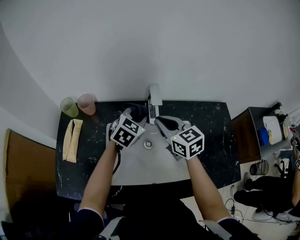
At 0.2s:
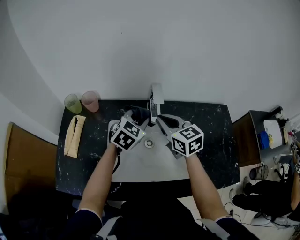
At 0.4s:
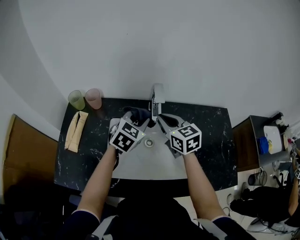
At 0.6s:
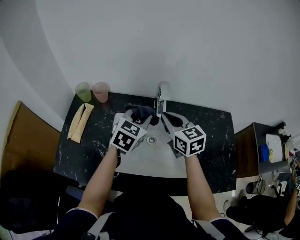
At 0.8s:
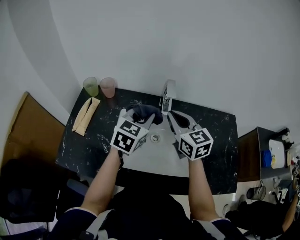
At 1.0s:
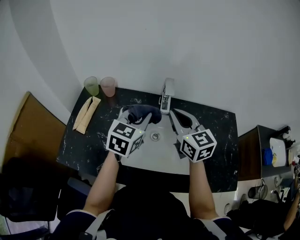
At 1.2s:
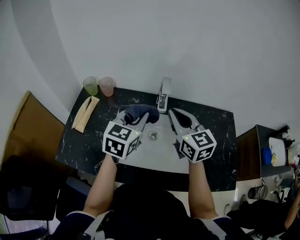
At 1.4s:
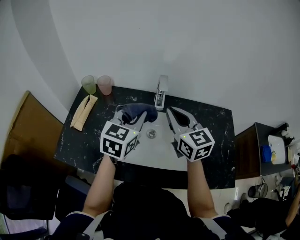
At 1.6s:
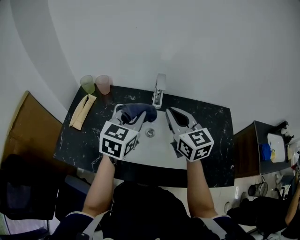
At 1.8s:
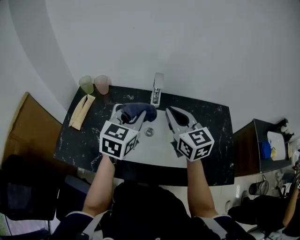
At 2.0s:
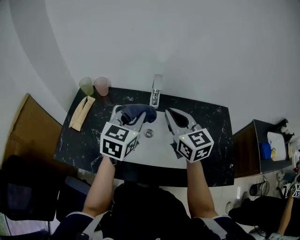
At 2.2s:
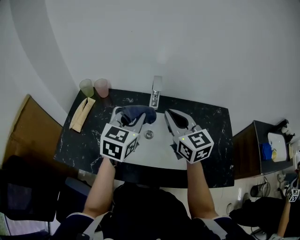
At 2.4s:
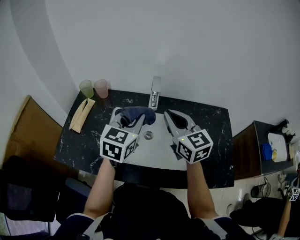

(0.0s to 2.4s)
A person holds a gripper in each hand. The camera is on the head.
0.0s - 1.2s: The left gripper moves backward and upward, some 15 cm, and rotates roughly 30 degrees; the right gripper moves upward and backward, some 10 cm.
1.2s - 2.4s: There are only small adjustments of the grippers.

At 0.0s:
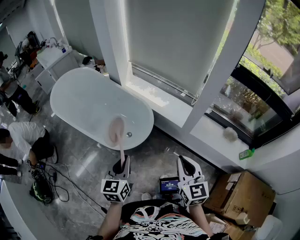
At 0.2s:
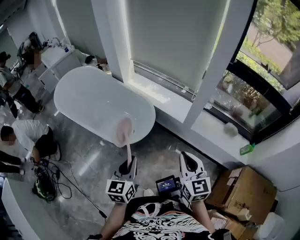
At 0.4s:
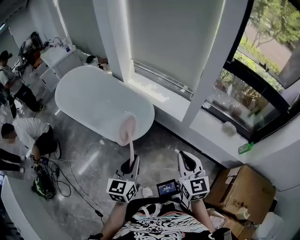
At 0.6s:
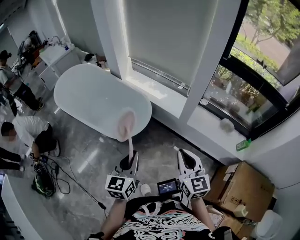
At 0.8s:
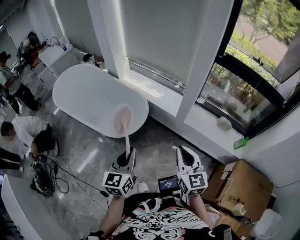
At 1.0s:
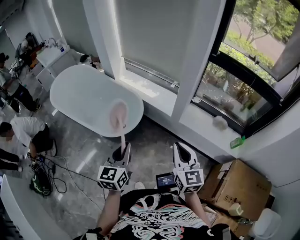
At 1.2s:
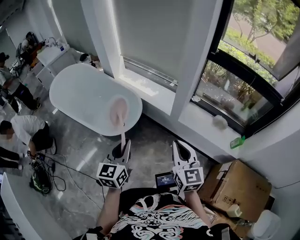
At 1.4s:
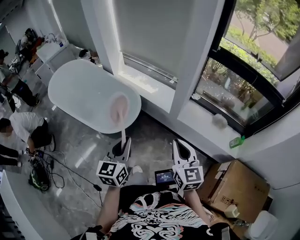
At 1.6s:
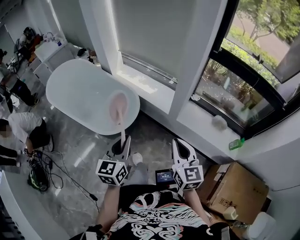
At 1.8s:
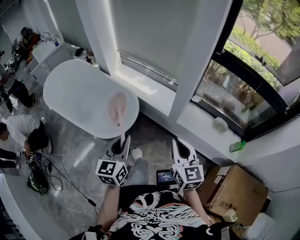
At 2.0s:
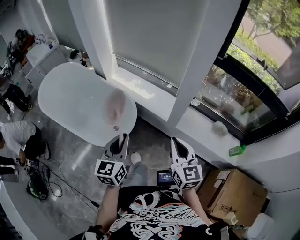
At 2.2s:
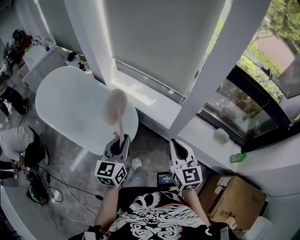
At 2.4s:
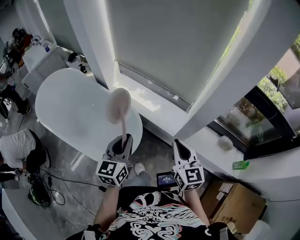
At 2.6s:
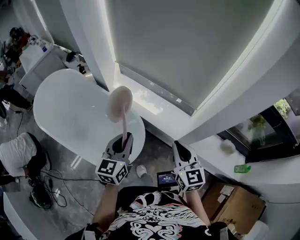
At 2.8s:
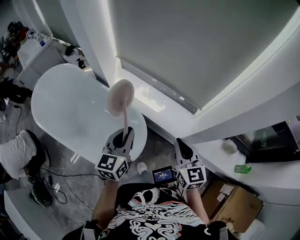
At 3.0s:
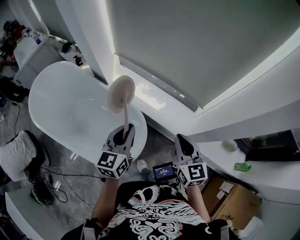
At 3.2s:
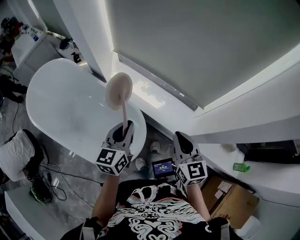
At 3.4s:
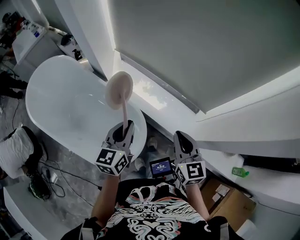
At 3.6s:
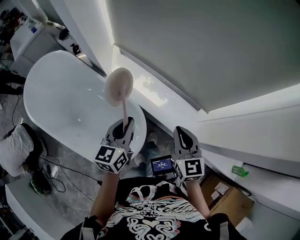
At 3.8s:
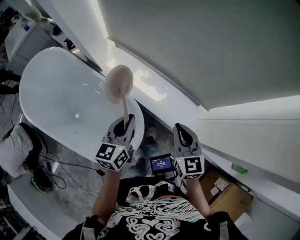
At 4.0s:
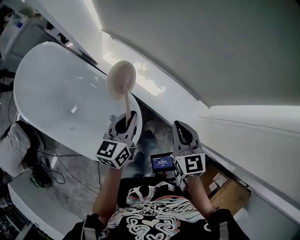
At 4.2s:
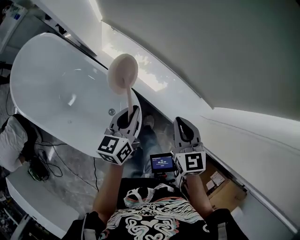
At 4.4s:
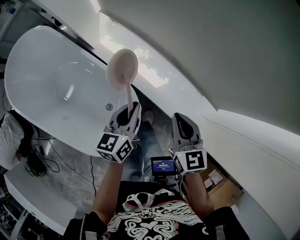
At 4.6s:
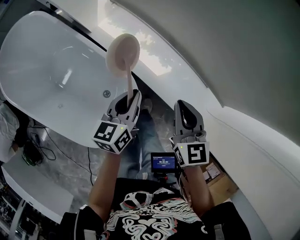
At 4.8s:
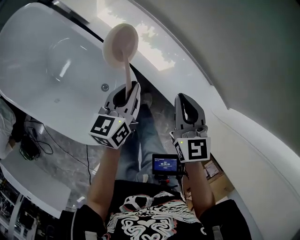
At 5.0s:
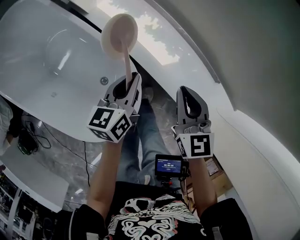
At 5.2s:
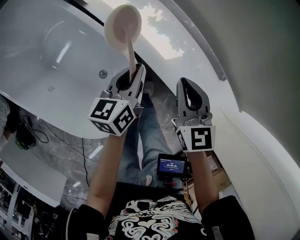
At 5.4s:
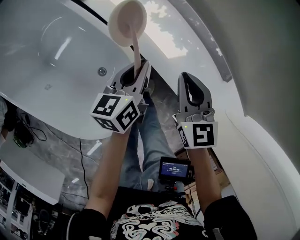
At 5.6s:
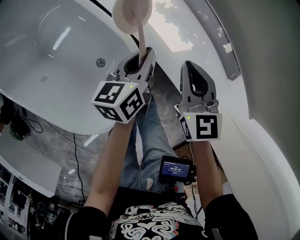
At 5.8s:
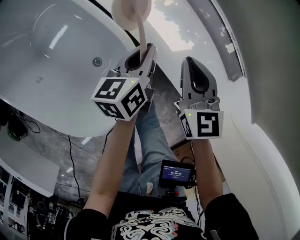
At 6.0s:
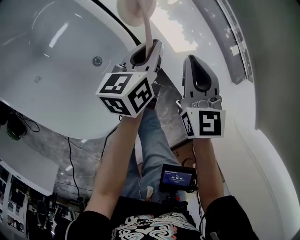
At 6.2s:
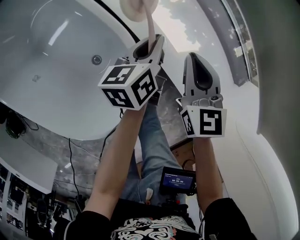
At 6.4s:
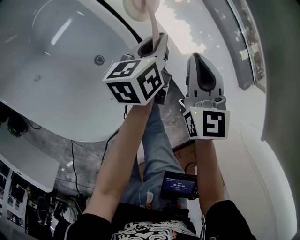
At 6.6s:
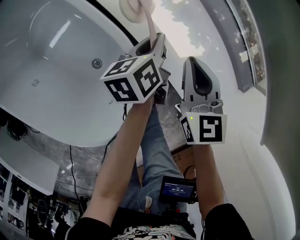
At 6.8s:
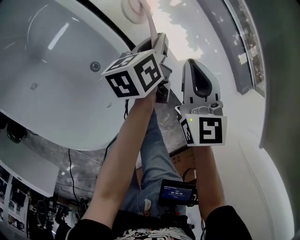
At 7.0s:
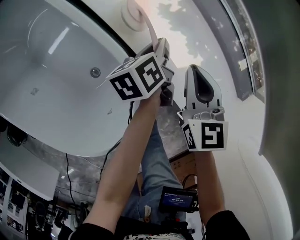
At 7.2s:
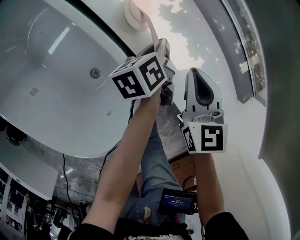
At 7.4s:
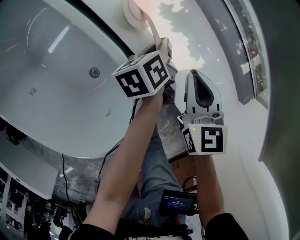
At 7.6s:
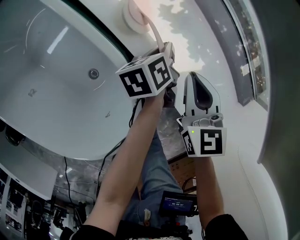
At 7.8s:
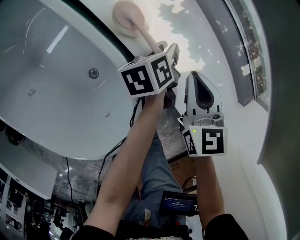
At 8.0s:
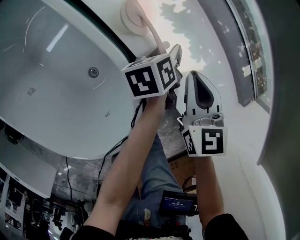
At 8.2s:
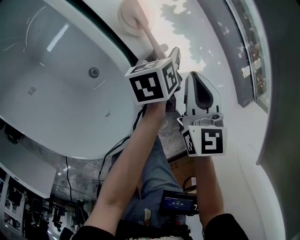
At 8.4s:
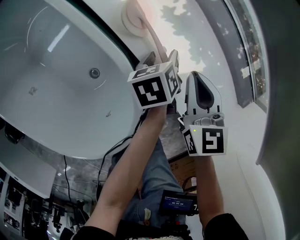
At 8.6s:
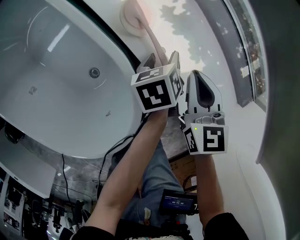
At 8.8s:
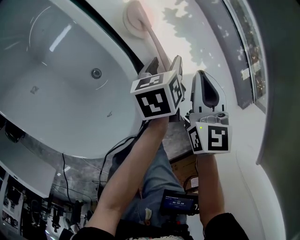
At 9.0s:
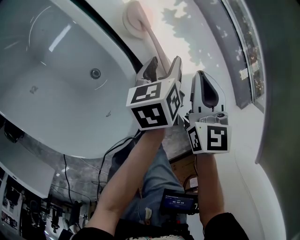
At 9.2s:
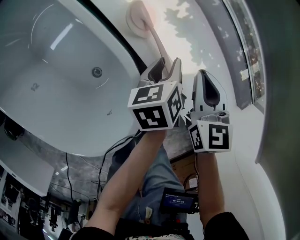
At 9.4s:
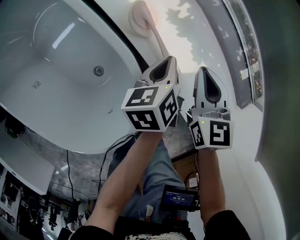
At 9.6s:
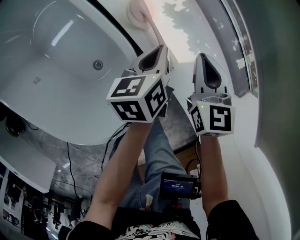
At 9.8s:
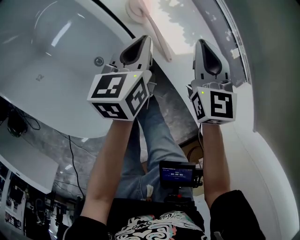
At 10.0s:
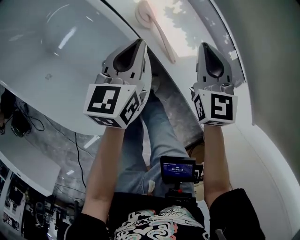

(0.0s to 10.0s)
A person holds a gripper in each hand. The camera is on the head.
0.0s - 1.4s: The left gripper goes roughly 15 cm to the right. The right gripper travels to the right and backward by roughly 15 cm.
1.4s - 2.8s: Both grippers are carried forward, some 50 cm.
2.8s - 4.2s: The two grippers go roughly 25 cm forward and downward.
4.2s - 5.8s: The right gripper is displaced downward and forward by approximately 30 cm. Meanwhile the left gripper moves downward, about 30 cm, and turns by some 20 degrees.
5.8s - 7.2s: The left gripper moves downward and forward, approximately 15 cm, and swivels some 20 degrees, while the right gripper is displaced downward by approximately 10 cm.
7.2s - 8.6s: The left gripper opens.
8.6s - 10.0s: The right gripper is displaced upward by approximately 15 cm. The left gripper is displaced upward and to the left by roughly 25 cm, turns by some 40 degrees, and closes up.

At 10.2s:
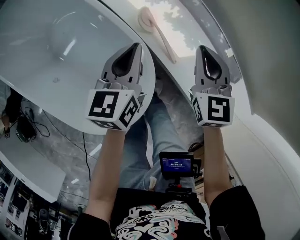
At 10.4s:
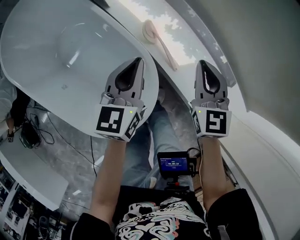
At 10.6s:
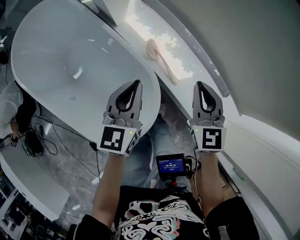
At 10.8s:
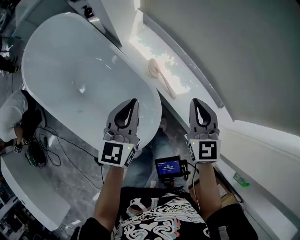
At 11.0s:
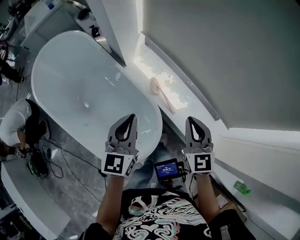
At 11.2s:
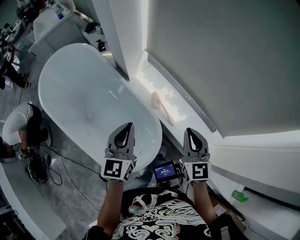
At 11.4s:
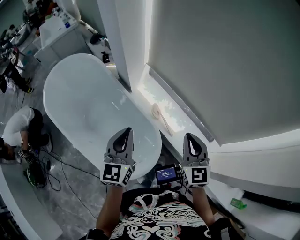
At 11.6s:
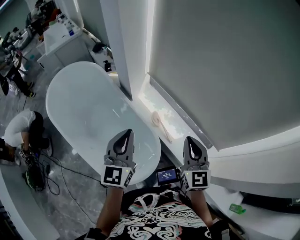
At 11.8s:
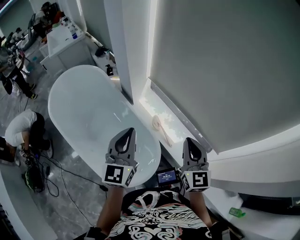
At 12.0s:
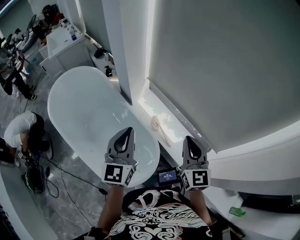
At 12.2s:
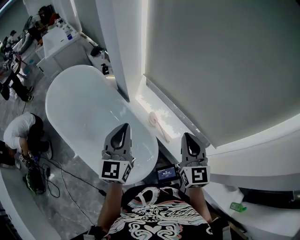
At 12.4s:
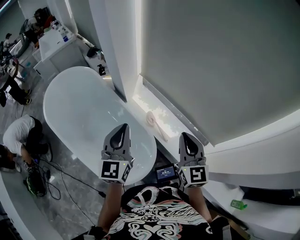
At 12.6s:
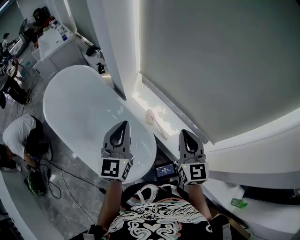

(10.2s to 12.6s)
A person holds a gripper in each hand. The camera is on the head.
10.2s - 11.4s: The left gripper heads upward, covering roughly 35 cm, and swivels some 20 degrees, while the right gripper moves upward and backward, roughly 35 cm.
11.4s - 12.6s: Both grippers travel together upward, approximately 5 cm.

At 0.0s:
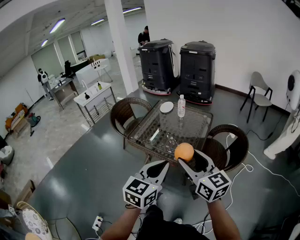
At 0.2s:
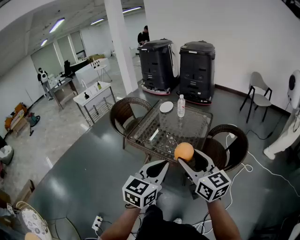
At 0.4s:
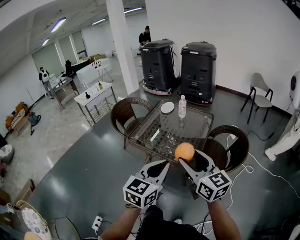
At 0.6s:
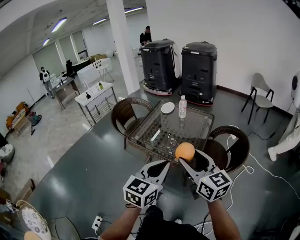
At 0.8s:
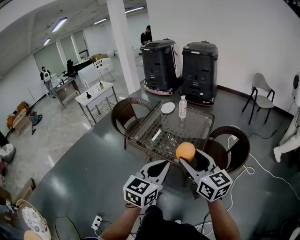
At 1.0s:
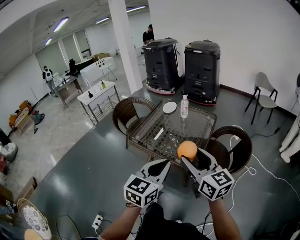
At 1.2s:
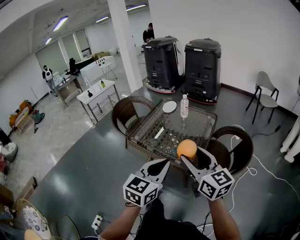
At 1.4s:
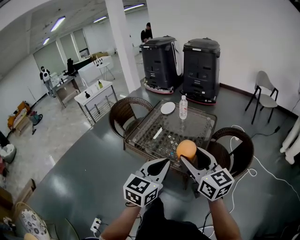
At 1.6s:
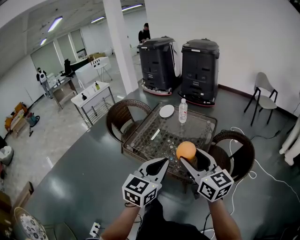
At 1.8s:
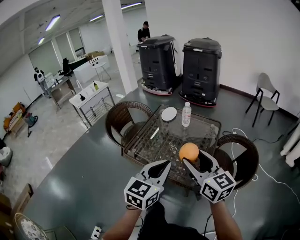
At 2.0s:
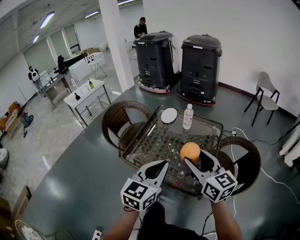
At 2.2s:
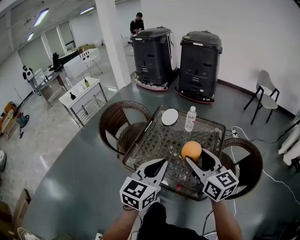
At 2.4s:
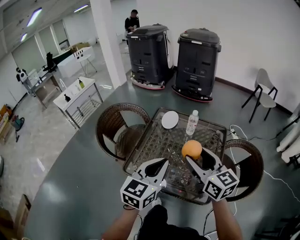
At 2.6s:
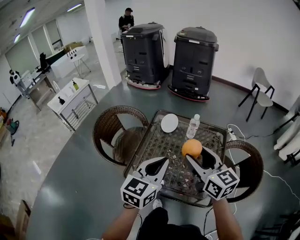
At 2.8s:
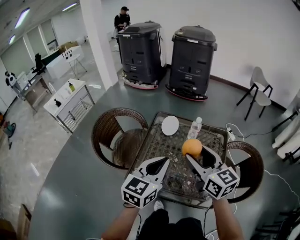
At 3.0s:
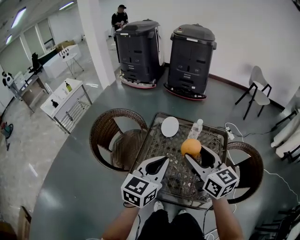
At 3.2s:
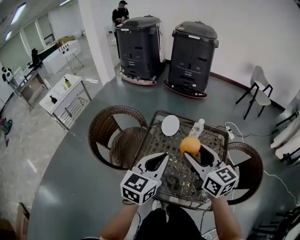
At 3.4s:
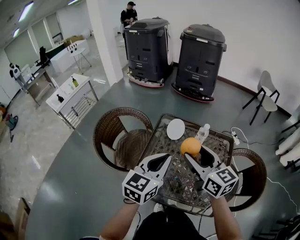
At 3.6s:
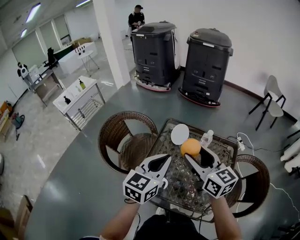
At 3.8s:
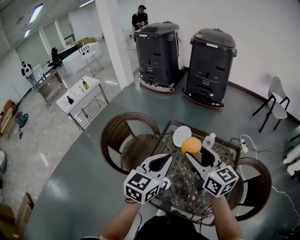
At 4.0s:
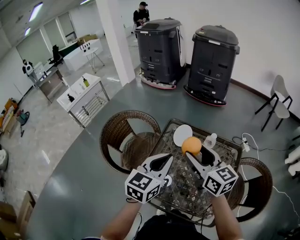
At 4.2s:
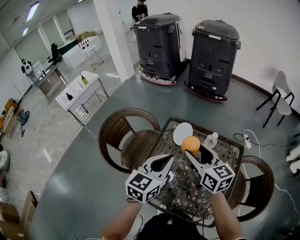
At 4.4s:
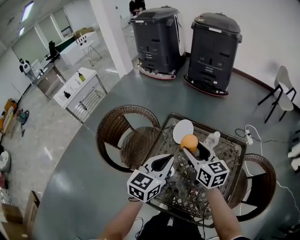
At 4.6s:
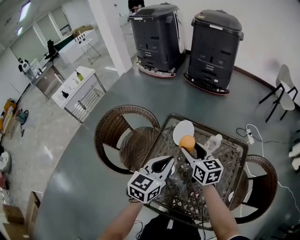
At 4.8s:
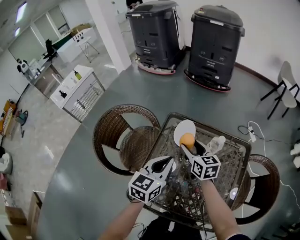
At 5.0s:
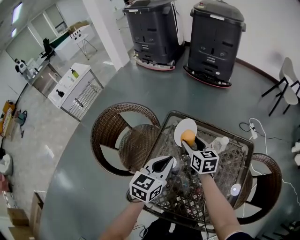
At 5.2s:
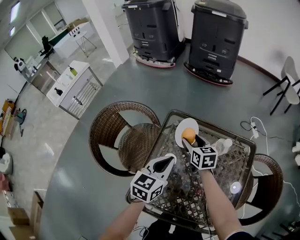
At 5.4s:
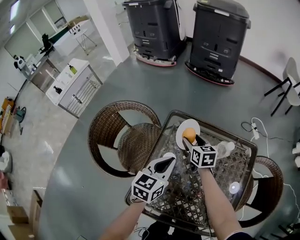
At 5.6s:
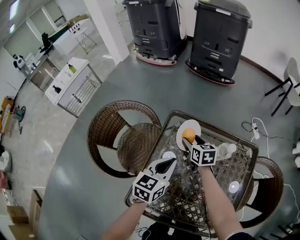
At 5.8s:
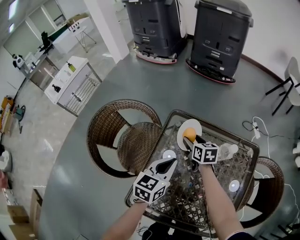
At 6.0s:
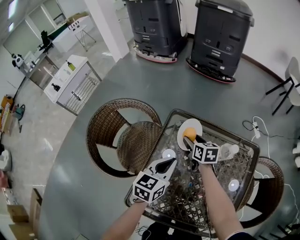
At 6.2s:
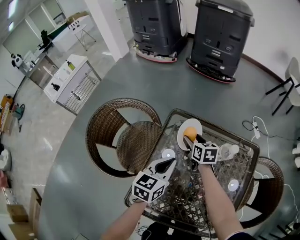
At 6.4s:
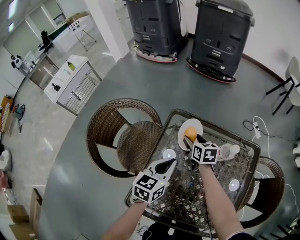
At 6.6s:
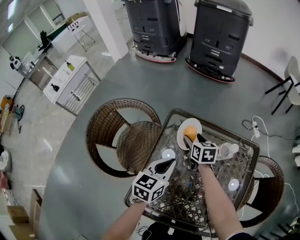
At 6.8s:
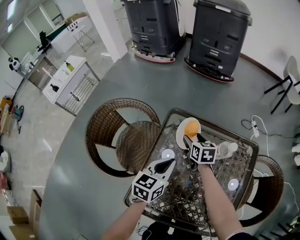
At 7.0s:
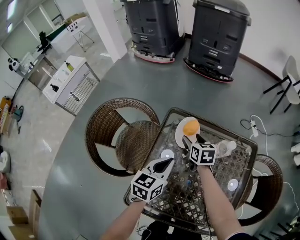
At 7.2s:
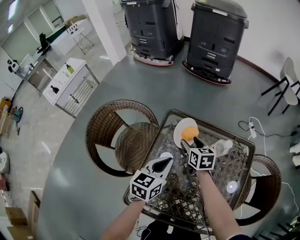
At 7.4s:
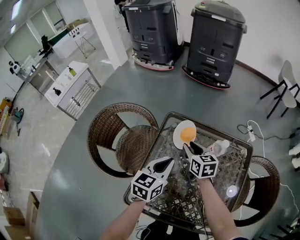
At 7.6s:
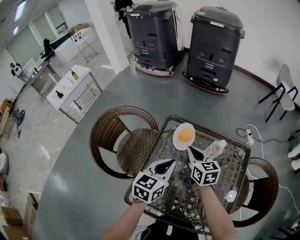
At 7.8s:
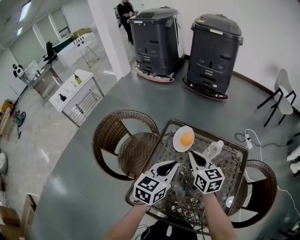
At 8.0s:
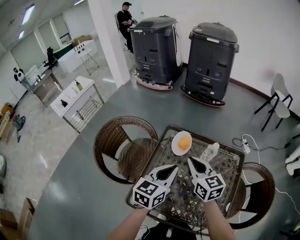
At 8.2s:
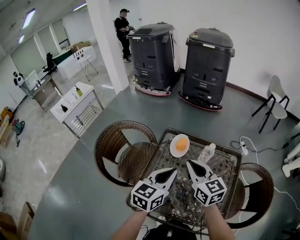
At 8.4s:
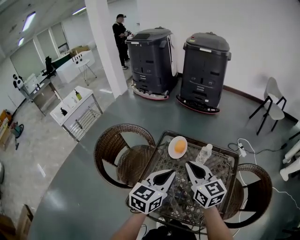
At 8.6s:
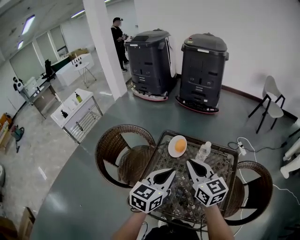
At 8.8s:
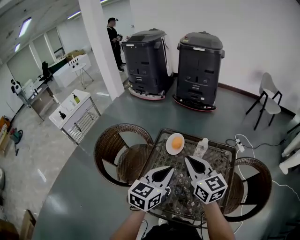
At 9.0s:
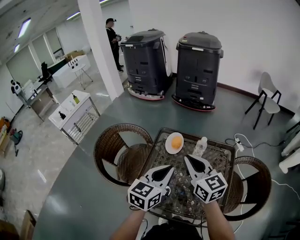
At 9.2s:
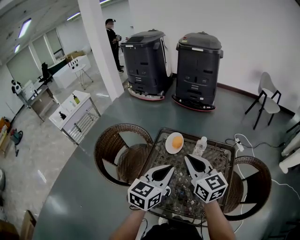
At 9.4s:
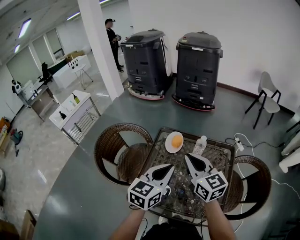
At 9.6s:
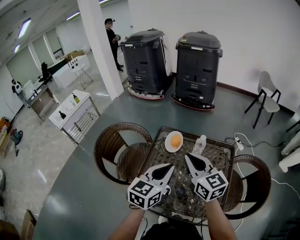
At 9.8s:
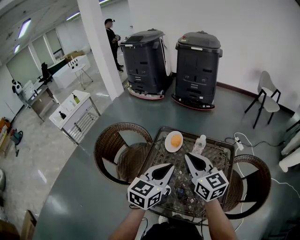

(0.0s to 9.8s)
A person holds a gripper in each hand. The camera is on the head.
0.0s - 1.4s: Both grippers travel together forward, some 5 cm.
1.4s - 2.8s: Both grippers move forward and to the left, roughly 35 cm.
2.8s - 4.2s: The left gripper shifts about 10 cm forward. Meanwhile the right gripper is displaced forward and downward by roughly 15 cm.
4.2s - 5.6s: The left gripper is displaced downward and forward by about 20 cm. Meanwhile the right gripper goes some 30 cm downward and forward, and turns by about 30 degrees.
5.6s - 7.0s: The grippers make only small movements.
7.0s - 8.4s: The right gripper is displaced upward and backward by roughly 30 cm, changes its angle by roughly 30 degrees, and closes; the left gripper goes approximately 20 cm upward and backward.
8.4s - 9.8s: The right gripper moves approximately 5 cm.
